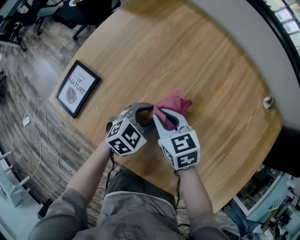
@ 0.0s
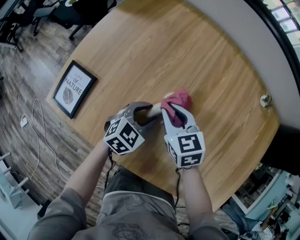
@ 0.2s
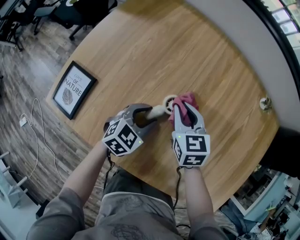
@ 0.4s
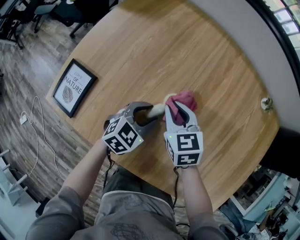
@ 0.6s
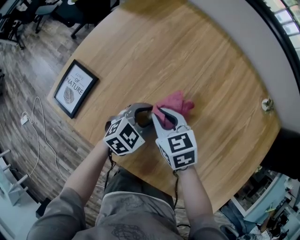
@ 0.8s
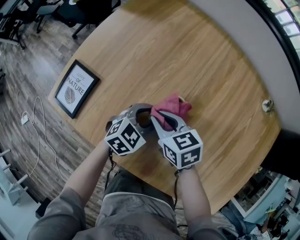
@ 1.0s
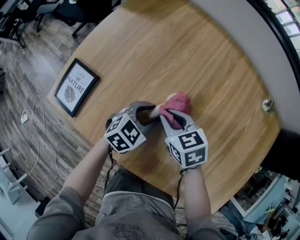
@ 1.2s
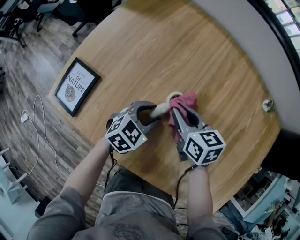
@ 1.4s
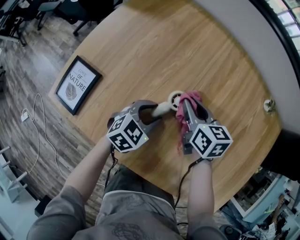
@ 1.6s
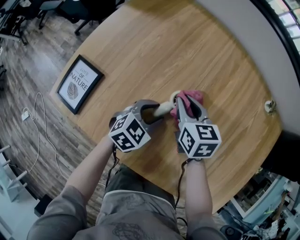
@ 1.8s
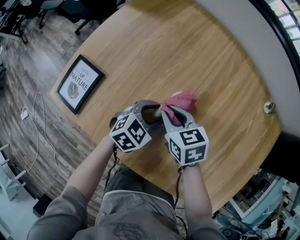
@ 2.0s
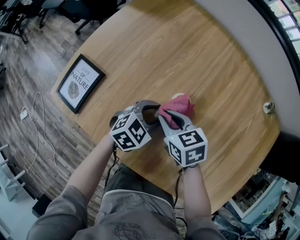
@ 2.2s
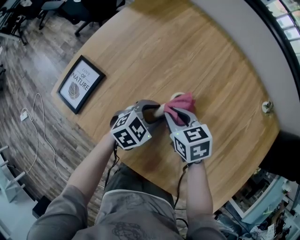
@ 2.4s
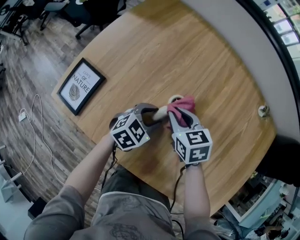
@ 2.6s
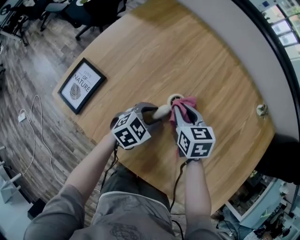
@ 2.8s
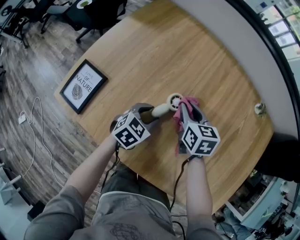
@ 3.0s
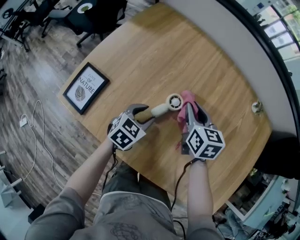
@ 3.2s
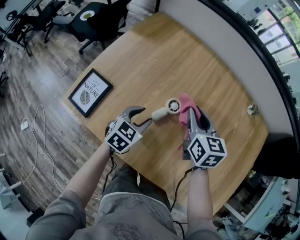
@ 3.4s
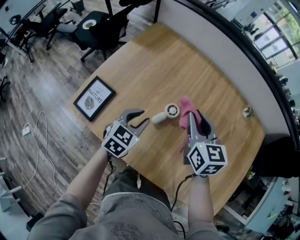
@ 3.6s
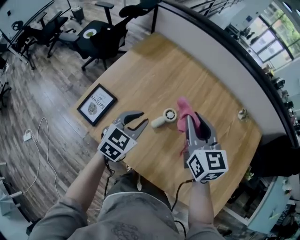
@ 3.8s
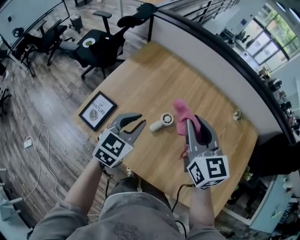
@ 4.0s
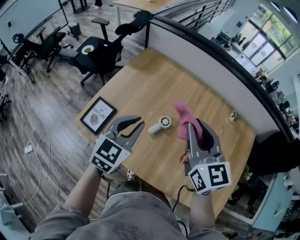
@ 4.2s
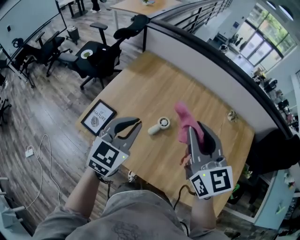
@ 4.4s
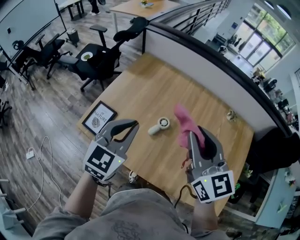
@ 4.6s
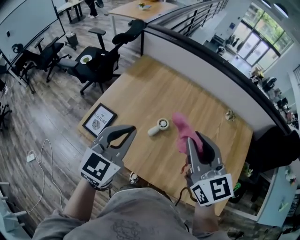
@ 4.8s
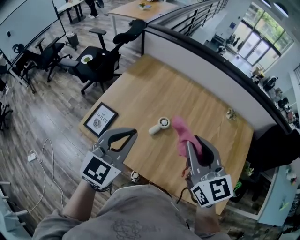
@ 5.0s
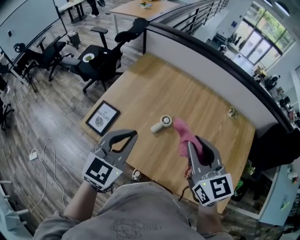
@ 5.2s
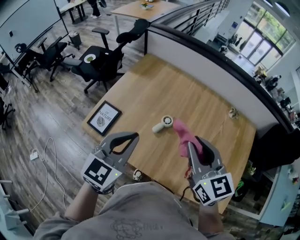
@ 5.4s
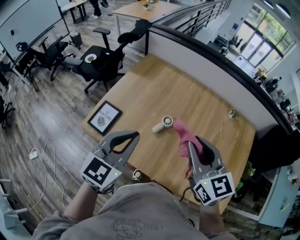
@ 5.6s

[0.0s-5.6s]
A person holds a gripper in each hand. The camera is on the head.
0.0s to 1.4s: The right gripper moves left and right over roughly 10 cm, changing direction 2 times.
1.4s to 2.8s: The right gripper moves some 5 cm backward and comes back.
2.8s to 4.2s: Both grippers move upward, roughly 35 cm. The left gripper rotates roughly 30 degrees, and closes up. Meanwhile the right gripper points its fingers some 40 degrees further upward.
4.2s to 5.6s: The left gripper is displaced backward and upward by roughly 10 cm. Meanwhile the right gripper travels backward by approximately 10 cm.

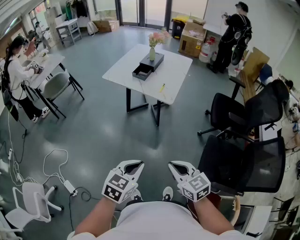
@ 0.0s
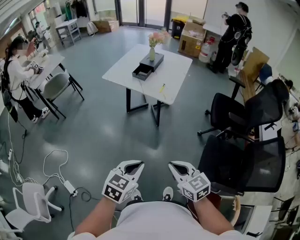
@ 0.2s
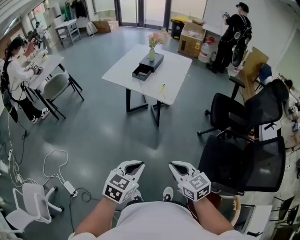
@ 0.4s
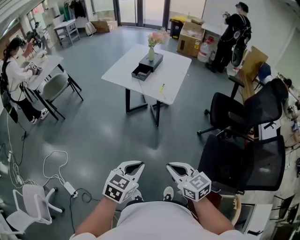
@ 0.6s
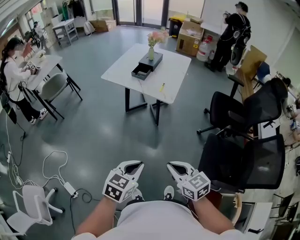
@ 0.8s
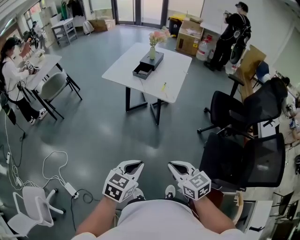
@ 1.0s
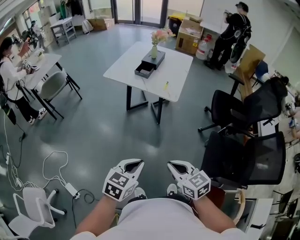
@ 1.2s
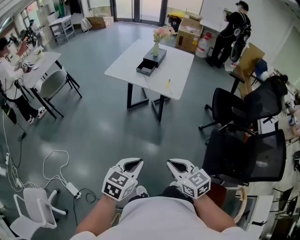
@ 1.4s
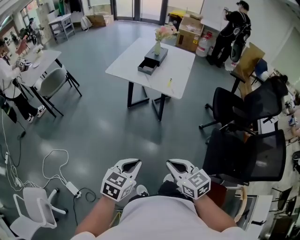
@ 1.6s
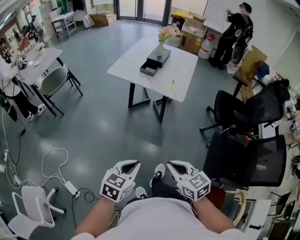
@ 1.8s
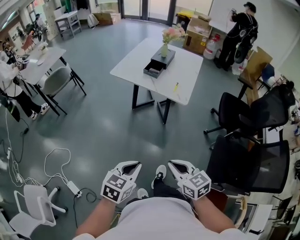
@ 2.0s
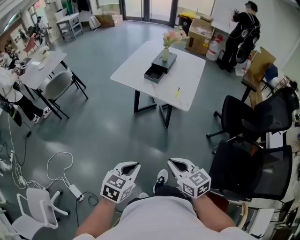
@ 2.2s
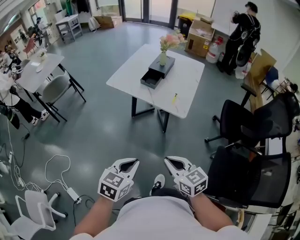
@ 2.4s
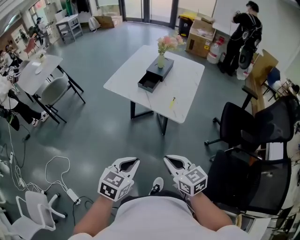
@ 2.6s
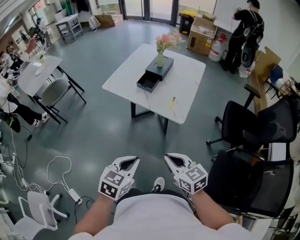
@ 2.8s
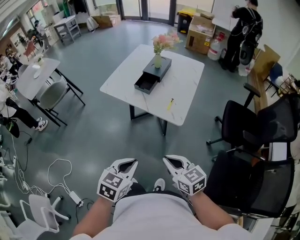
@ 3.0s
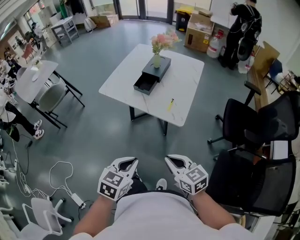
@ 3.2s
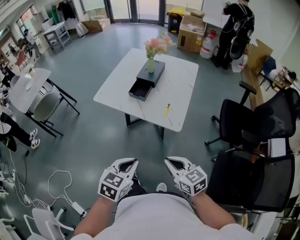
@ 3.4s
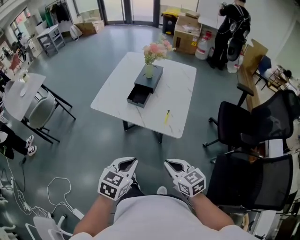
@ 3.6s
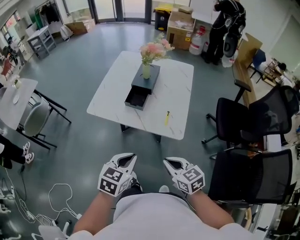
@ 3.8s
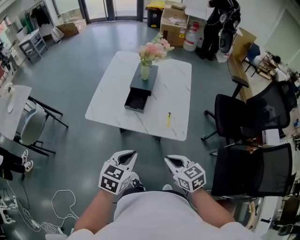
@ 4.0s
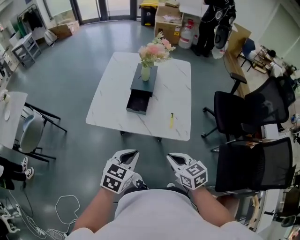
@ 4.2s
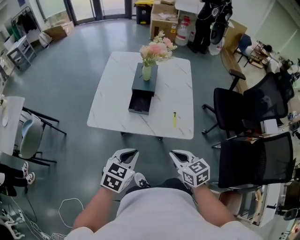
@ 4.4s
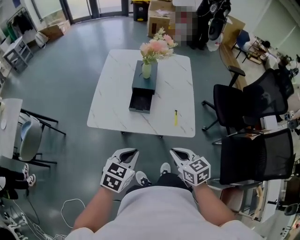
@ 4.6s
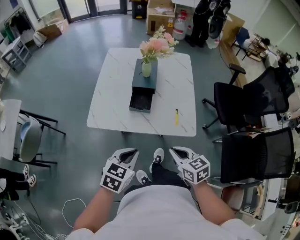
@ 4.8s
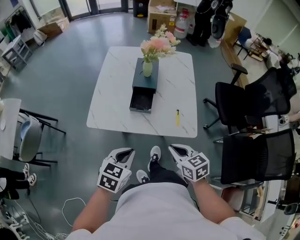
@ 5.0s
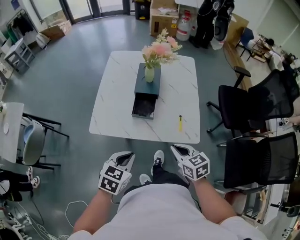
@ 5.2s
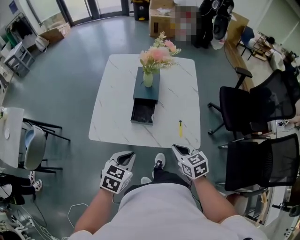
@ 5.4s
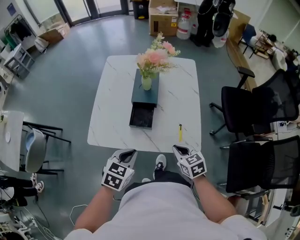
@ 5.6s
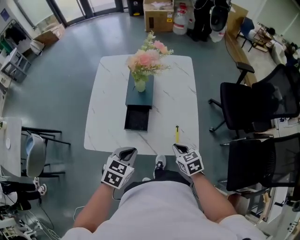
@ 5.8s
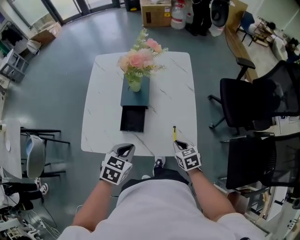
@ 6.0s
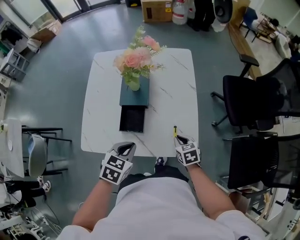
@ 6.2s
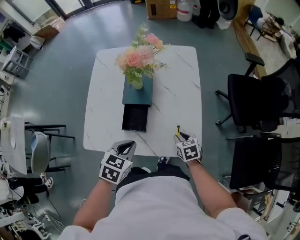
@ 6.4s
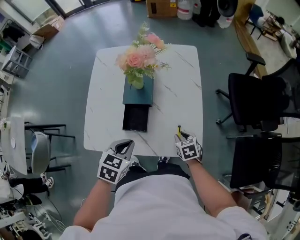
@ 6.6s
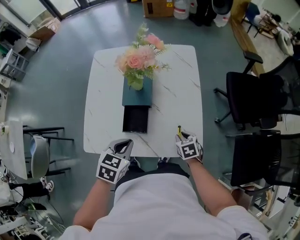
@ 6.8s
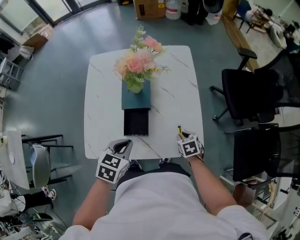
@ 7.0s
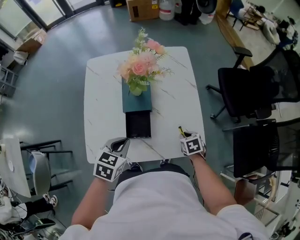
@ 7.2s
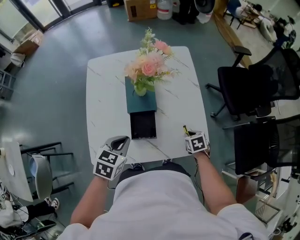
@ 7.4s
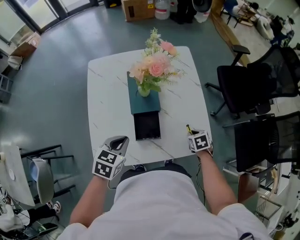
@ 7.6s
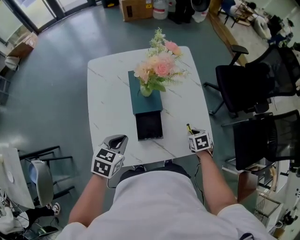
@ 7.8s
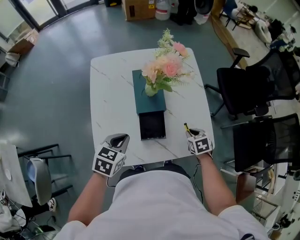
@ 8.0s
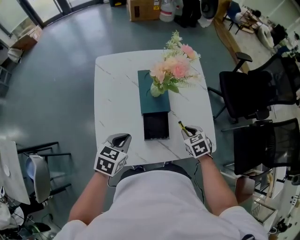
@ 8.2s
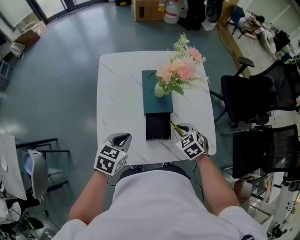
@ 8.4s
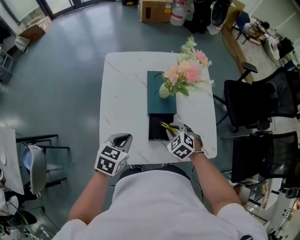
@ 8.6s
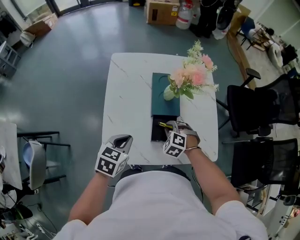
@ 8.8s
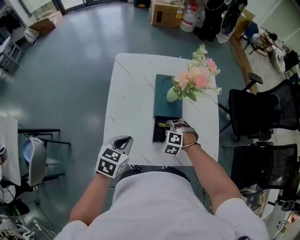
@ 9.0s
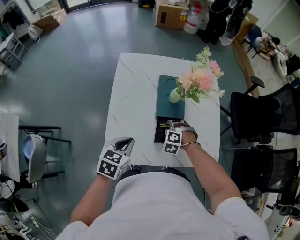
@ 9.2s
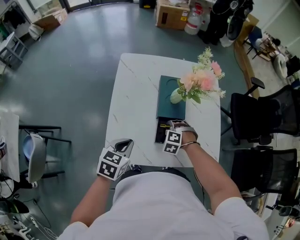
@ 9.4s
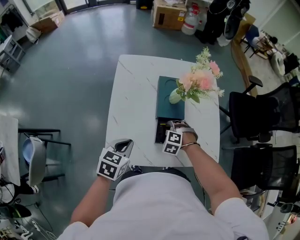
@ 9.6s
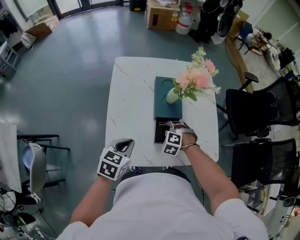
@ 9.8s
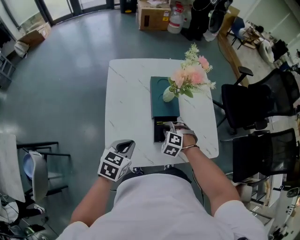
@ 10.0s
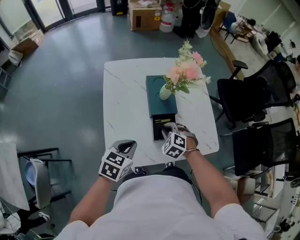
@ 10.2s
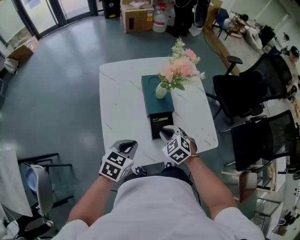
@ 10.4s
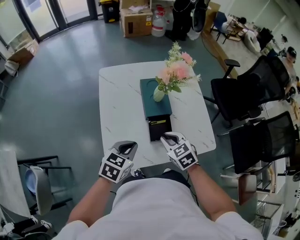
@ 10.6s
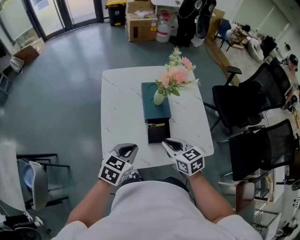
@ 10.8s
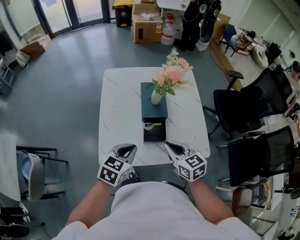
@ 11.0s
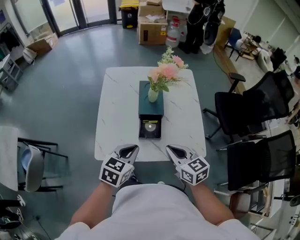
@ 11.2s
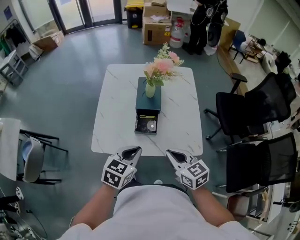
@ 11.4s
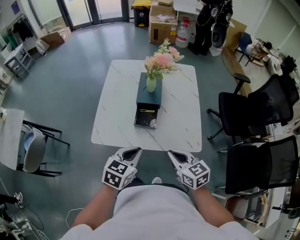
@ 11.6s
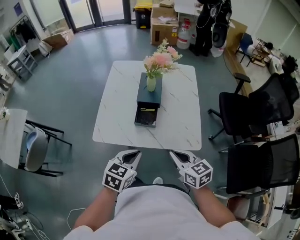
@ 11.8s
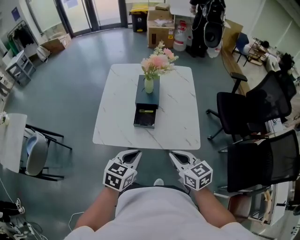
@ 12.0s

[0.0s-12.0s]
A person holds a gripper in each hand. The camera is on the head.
0.0s to 1.6s: The two grippers go roughly 10 cm to the left.
1.6s to 3.0s: Both grippers travel together forward, roughly 25 cm.
3.0s to 4.4s: Both grippers move forward and to the left, approximately 25 cm. The right gripper swivels some 30 degrees. The left gripper turns by about 20 degrees.
4.4s to 6.0s: The right gripper travels forward and downward by some 25 cm, while the left gripper heads forward, covering approximately 20 cm.
6.0s to 7.6s: The right gripper heads forward, covering about 5 cm, and swivels about 20 degrees. Meanwhile the left gripper goes approximately 15 cm to the left and forward.
7.6s to 9.0s: The left gripper travels to the left by roughly 10 cm. The right gripper shifts some 25 cm to the left, and rotates around the line of its fingers by some 80 degrees, counterclockwise from behind.
9.0s to 10.4s: The right gripper heads upward and backward, covering roughly 10 cm, and changes its angle by roughly 40 degrees.
10.4s to 12.0s: The left gripper moves backward and to the right, about 25 cm. The right gripper is displaced backward, to the right and upward by about 30 cm, and turns by roughly 40 degrees.

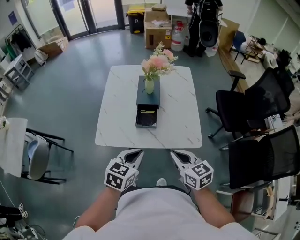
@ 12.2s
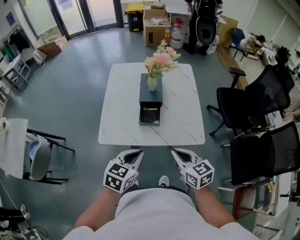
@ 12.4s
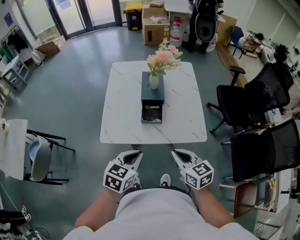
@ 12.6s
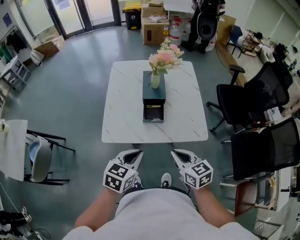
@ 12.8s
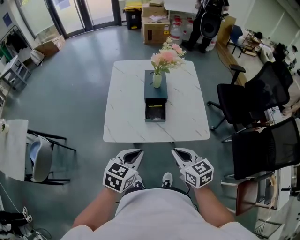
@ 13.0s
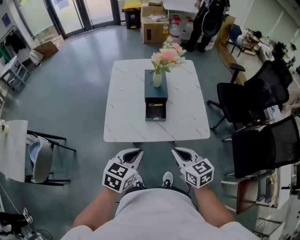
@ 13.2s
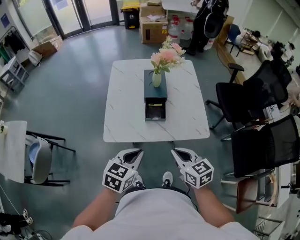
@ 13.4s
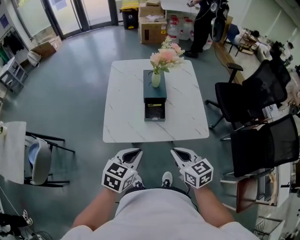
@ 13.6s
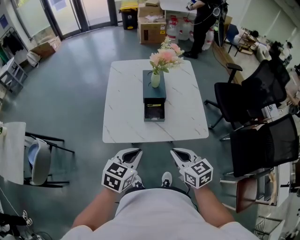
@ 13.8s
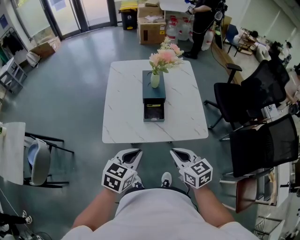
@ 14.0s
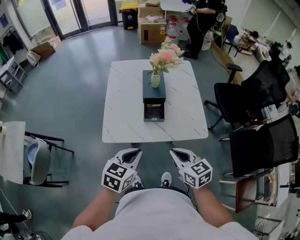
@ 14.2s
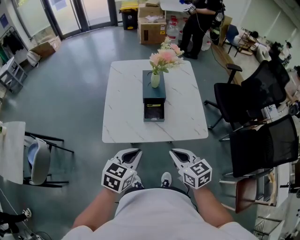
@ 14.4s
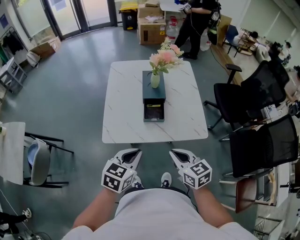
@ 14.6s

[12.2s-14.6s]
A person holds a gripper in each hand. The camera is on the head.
12.2s to 13.4s: Both grippers move to the left, approximately 5 cm.
13.4s to 14.6s: The two grippers keep their place.

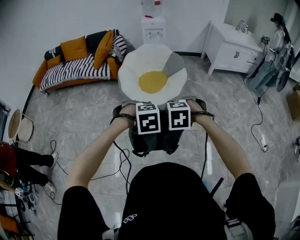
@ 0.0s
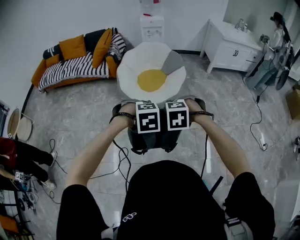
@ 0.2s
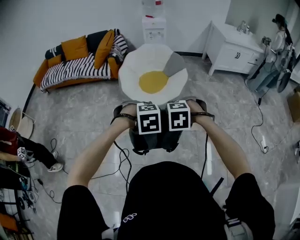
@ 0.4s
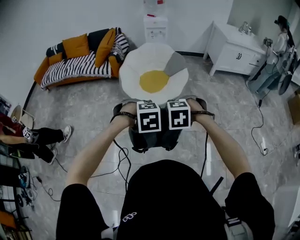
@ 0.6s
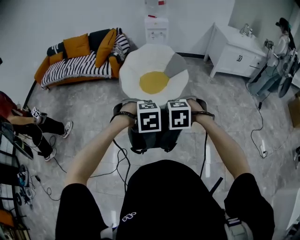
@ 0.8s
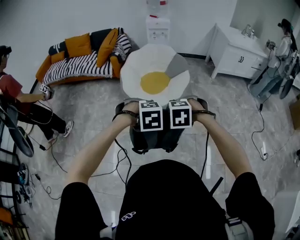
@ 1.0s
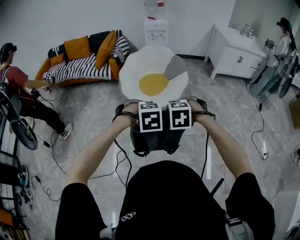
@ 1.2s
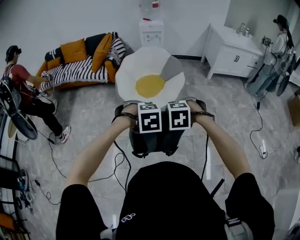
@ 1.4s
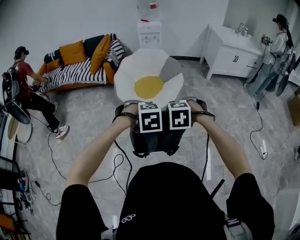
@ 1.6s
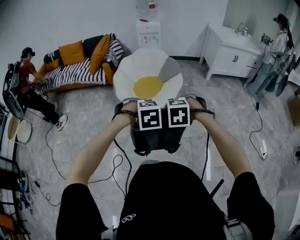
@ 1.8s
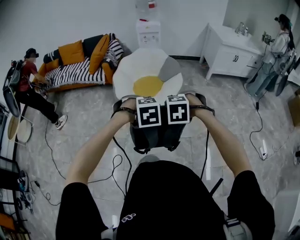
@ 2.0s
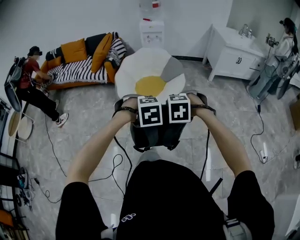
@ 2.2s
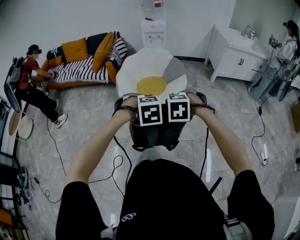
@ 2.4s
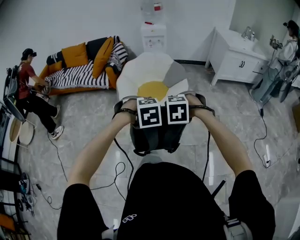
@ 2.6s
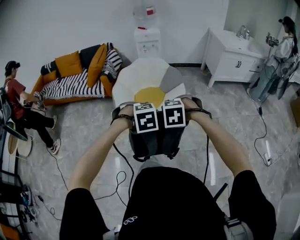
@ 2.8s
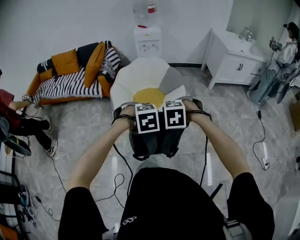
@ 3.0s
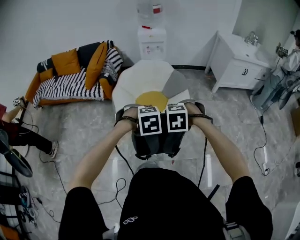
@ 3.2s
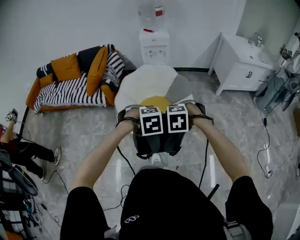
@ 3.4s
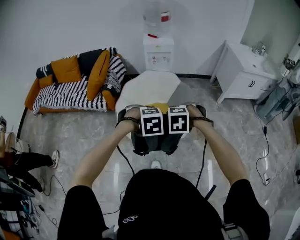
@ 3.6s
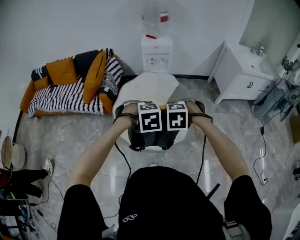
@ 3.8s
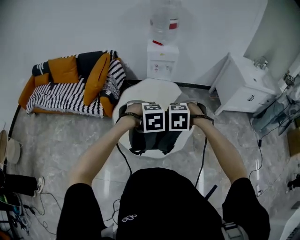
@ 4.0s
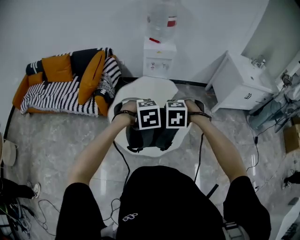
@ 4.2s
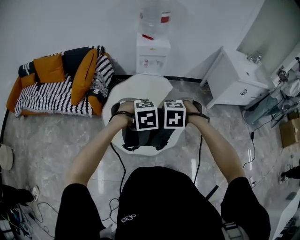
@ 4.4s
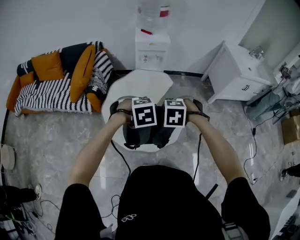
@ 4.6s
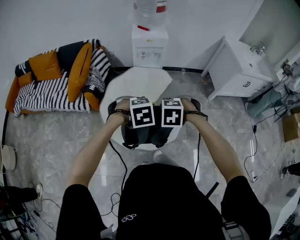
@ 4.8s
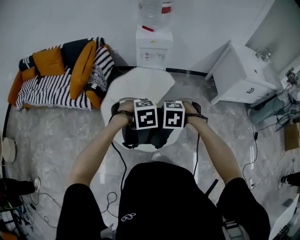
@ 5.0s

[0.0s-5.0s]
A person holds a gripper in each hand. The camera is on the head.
0.0s to 1.6s: The left gripper shifts by roughly 10 cm. The right gripper shifts by about 10 cm.
1.6s to 3.4s: The right gripper shifts by roughly 35 cm. The left gripper ends up roughly 35 cm from where it was.
3.4s to 5.0s: The right gripper shifts by about 25 cm. The left gripper moves about 25 cm.
